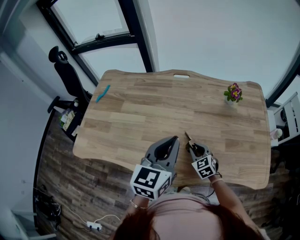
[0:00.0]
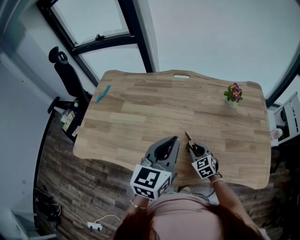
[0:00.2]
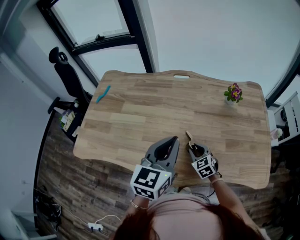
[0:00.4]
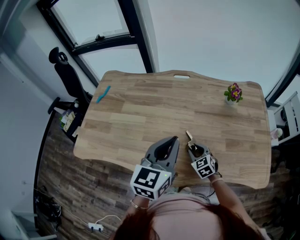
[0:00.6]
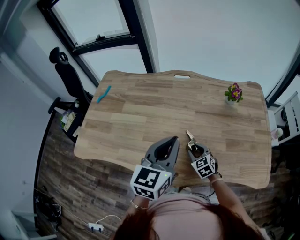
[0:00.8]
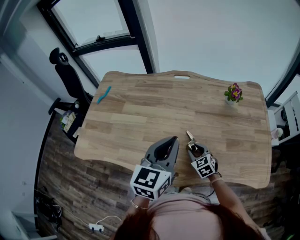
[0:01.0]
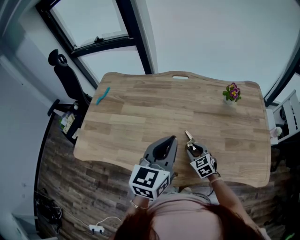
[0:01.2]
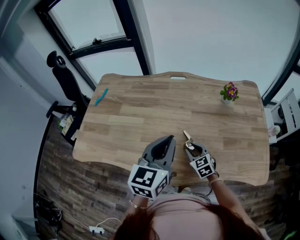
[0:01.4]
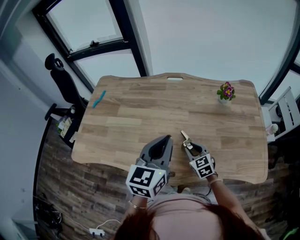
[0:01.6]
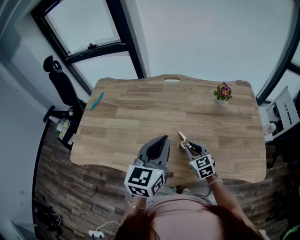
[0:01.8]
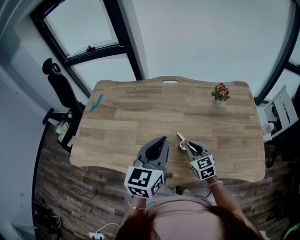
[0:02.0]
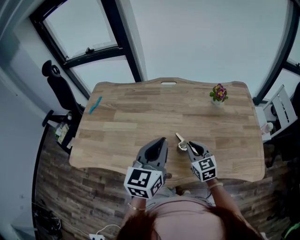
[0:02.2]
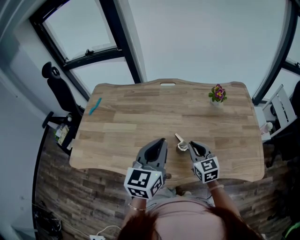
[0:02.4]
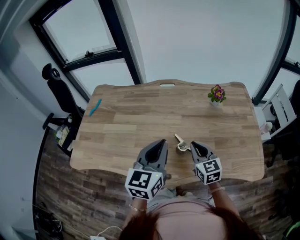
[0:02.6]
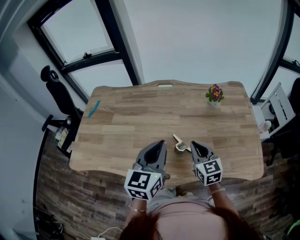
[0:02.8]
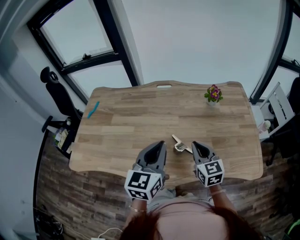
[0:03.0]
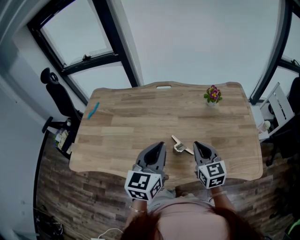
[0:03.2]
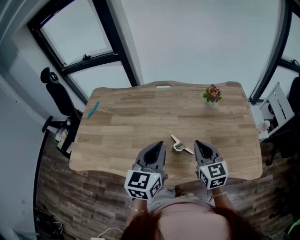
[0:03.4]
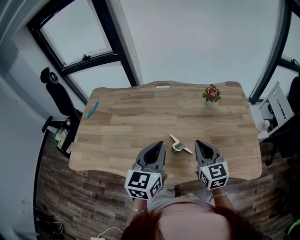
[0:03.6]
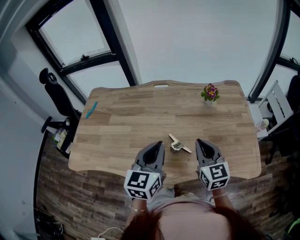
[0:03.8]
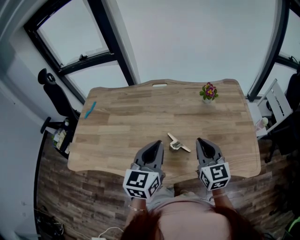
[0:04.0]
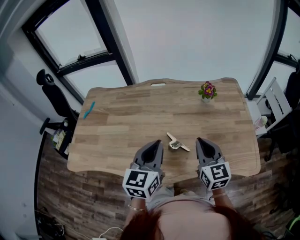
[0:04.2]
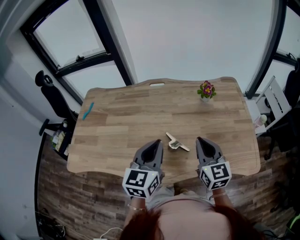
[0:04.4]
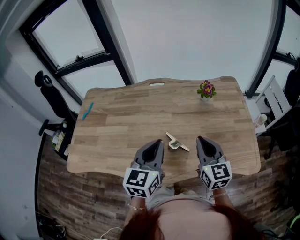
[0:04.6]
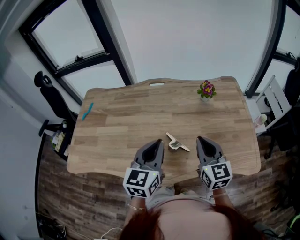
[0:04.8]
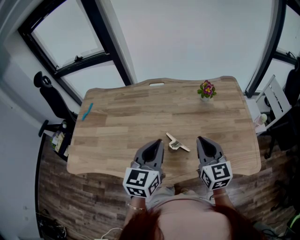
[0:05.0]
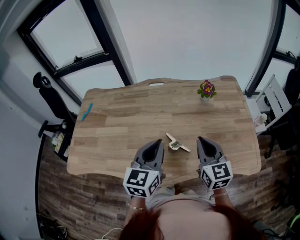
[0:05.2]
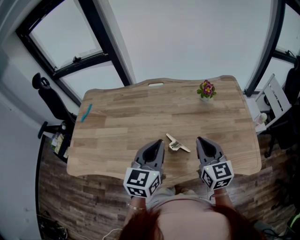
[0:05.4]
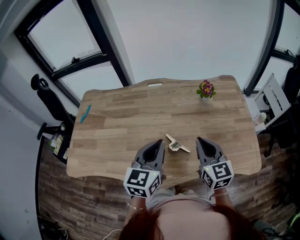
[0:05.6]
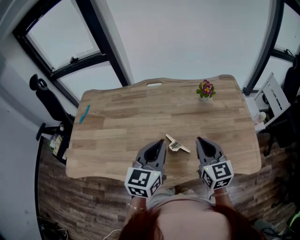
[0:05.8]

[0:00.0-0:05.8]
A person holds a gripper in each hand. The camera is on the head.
0:00.0 to 0:01.4: The grippers make only small movements.
0:01.4 to 0:02.8: The right gripper heads upward, covering approximately 15 cm, turns by roughly 20 degrees, and closes its fingers.
0:02.8 to 0:04.4: The right gripper shifts about 10 cm upward and to the right.
0:04.4 to 0:05.8: The grippers stay close to where they were, moving slightly.

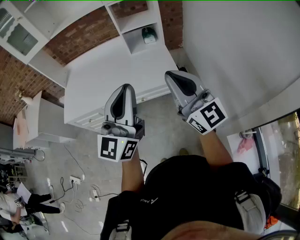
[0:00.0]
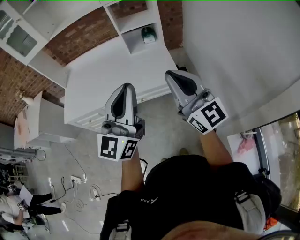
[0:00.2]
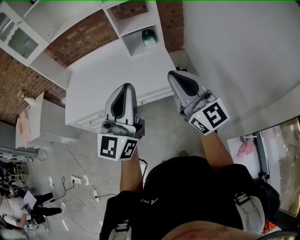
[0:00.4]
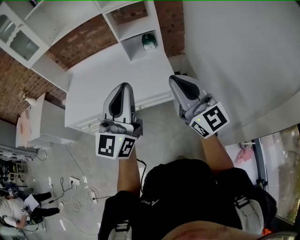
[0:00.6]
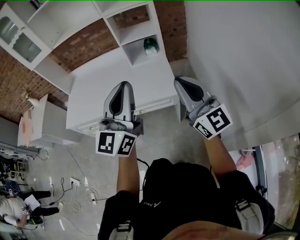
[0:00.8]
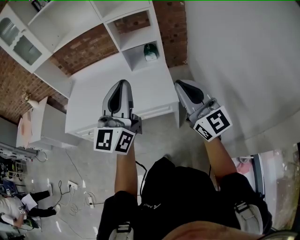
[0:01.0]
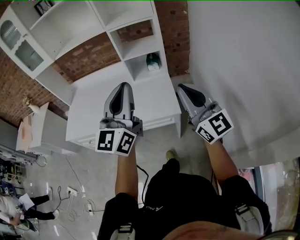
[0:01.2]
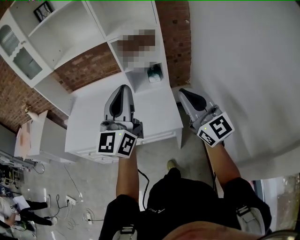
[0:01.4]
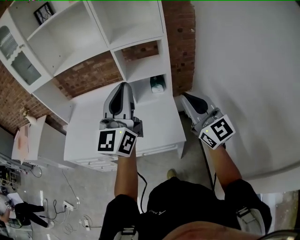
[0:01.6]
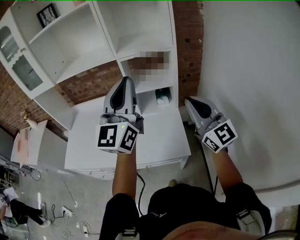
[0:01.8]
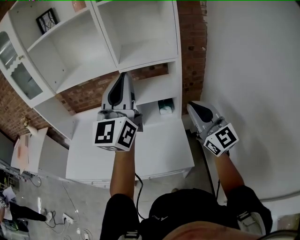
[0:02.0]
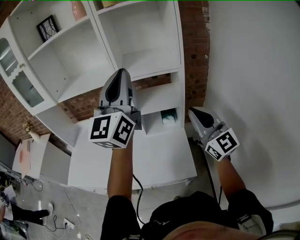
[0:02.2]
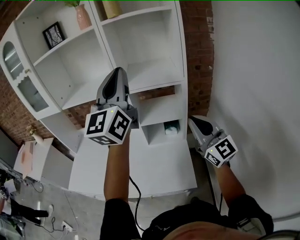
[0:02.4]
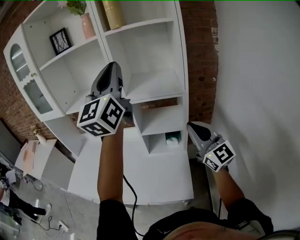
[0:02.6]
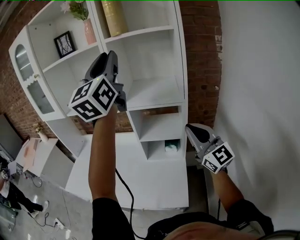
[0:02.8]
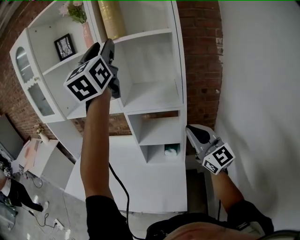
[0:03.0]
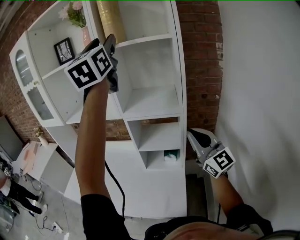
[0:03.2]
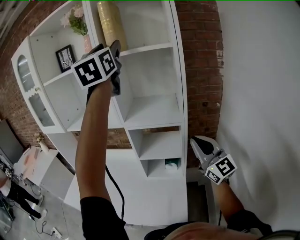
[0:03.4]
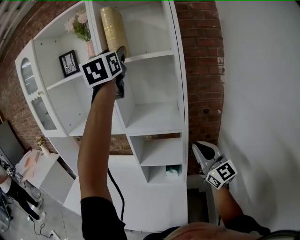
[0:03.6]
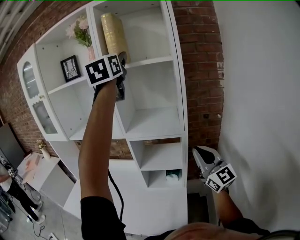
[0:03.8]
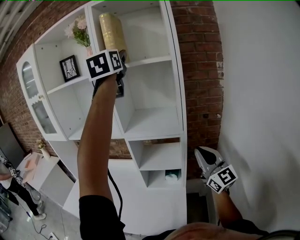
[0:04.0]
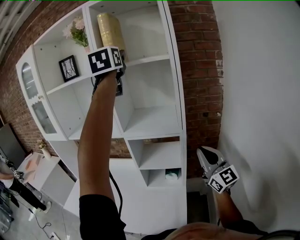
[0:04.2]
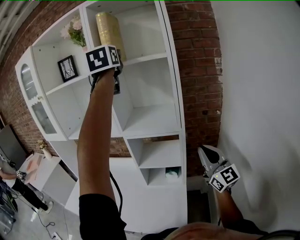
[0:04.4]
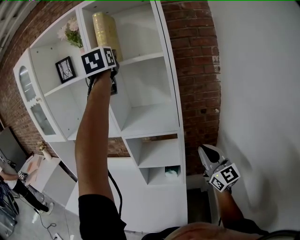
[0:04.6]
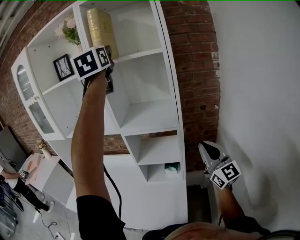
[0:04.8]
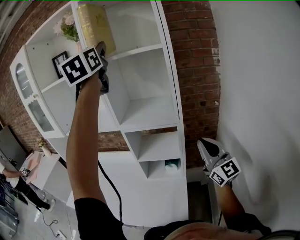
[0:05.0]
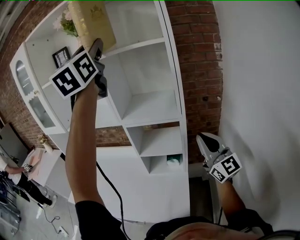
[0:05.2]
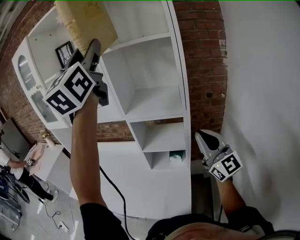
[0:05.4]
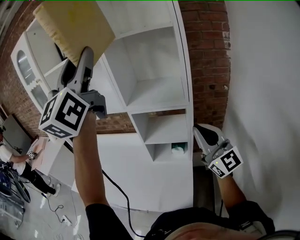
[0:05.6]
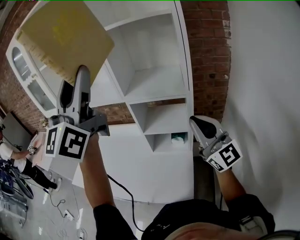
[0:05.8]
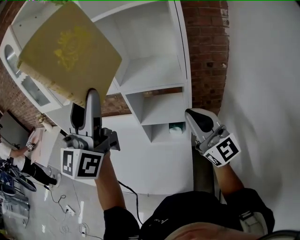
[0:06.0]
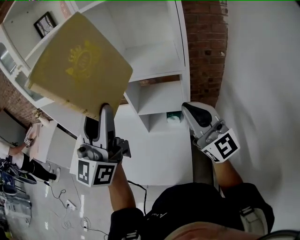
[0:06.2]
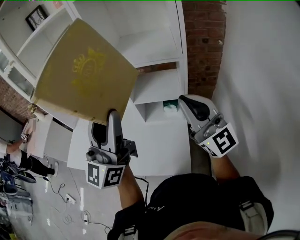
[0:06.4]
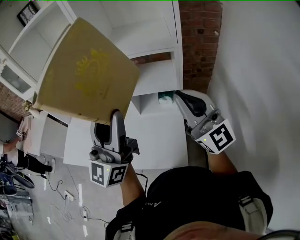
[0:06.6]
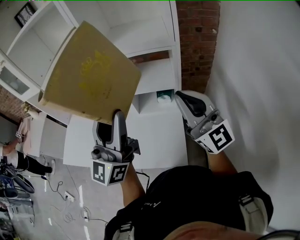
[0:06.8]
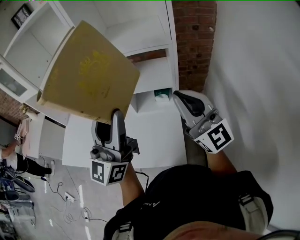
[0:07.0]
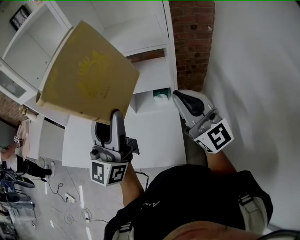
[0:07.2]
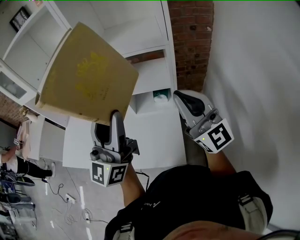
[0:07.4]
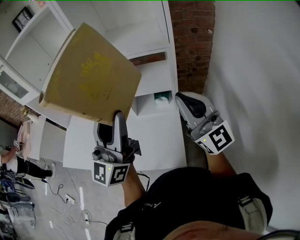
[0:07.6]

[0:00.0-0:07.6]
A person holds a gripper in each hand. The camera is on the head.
0:00.0 to 0:01.6: The left gripper goes some 25 cm forward, while the right gripper goes roughly 25 cm forward and to the right.
0:01.6 to 0:03.0: The right gripper is displaced forward by some 20 cm. Meanwhile the left gripper moves upward and forward, some 40 cm, rotates about 20 degrees, and opens up.
0:03.0 to 0:04.6: The right gripper heads to the right, covering approximately 10 cm. Meanwhile the left gripper heads forward, covering approximately 10 cm.
0:04.6 to 0:06.0: The left gripper is displaced backward and downward by some 30 cm, and swivels about 30 degrees. Meanwhile the right gripper goes about 10 cm to the left.
0:06.0 to 0:07.6: The right gripper ends up some 5 cm from where it was, while the left gripper is displaced downward by about 15 cm.

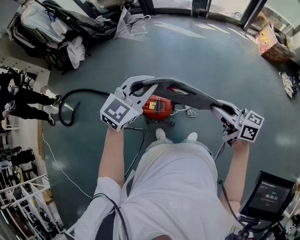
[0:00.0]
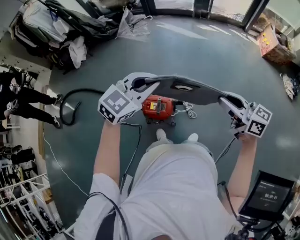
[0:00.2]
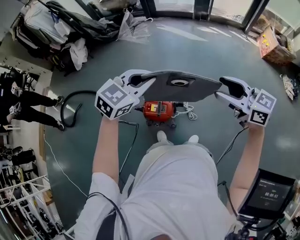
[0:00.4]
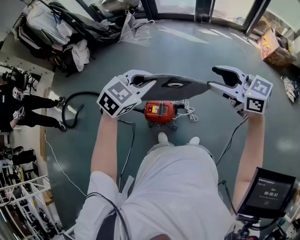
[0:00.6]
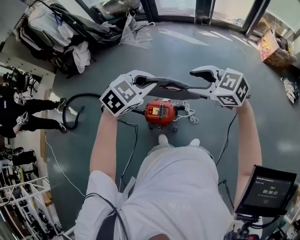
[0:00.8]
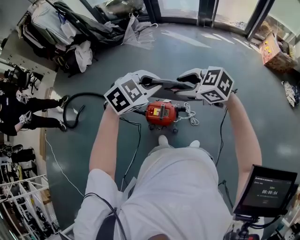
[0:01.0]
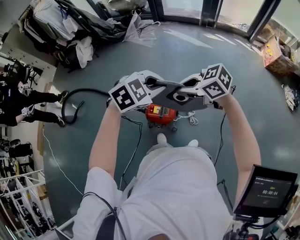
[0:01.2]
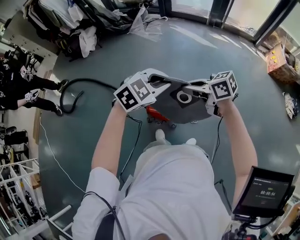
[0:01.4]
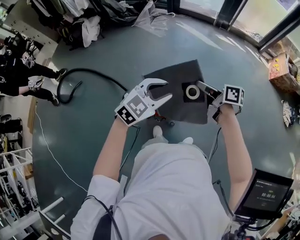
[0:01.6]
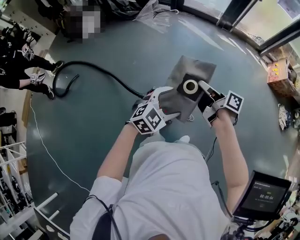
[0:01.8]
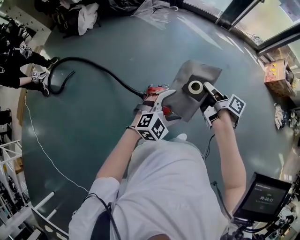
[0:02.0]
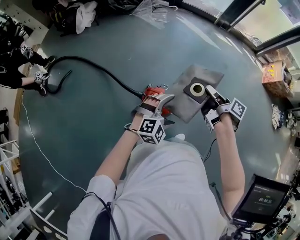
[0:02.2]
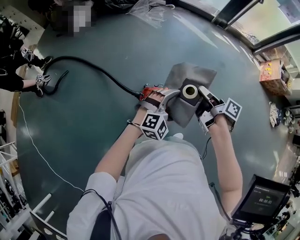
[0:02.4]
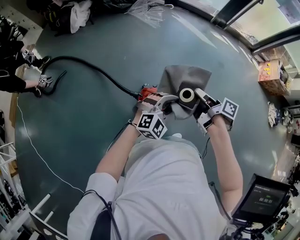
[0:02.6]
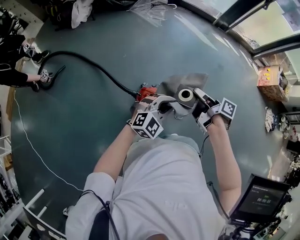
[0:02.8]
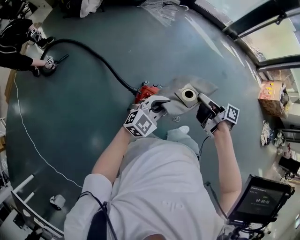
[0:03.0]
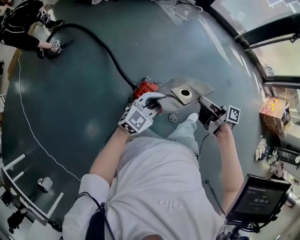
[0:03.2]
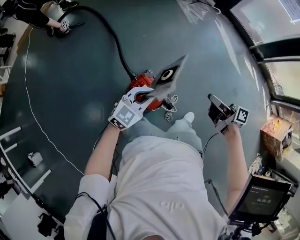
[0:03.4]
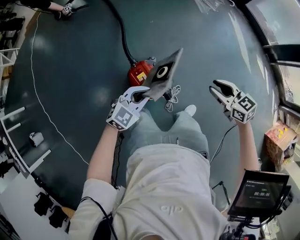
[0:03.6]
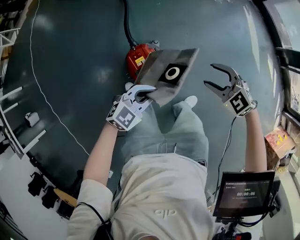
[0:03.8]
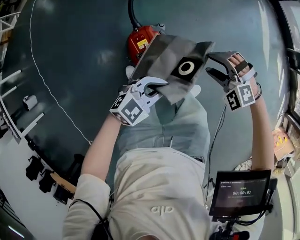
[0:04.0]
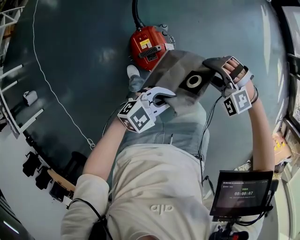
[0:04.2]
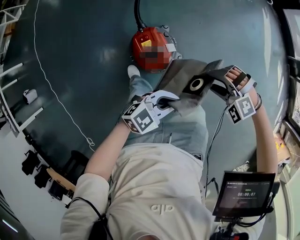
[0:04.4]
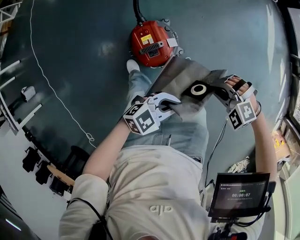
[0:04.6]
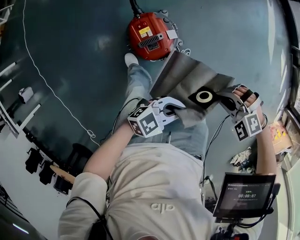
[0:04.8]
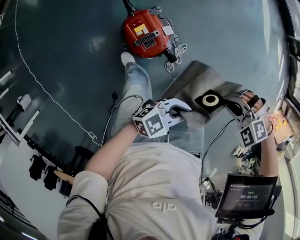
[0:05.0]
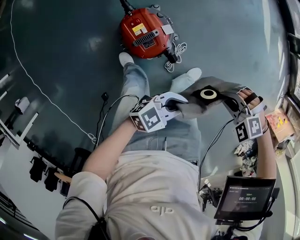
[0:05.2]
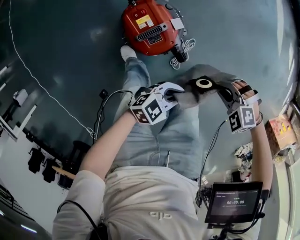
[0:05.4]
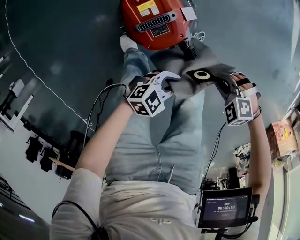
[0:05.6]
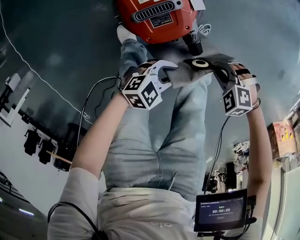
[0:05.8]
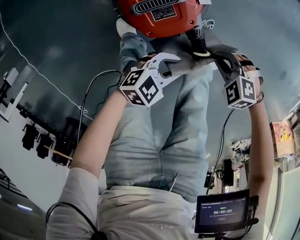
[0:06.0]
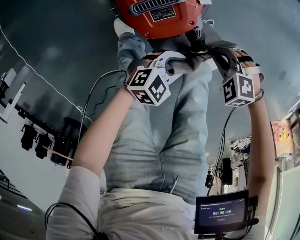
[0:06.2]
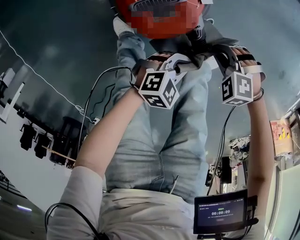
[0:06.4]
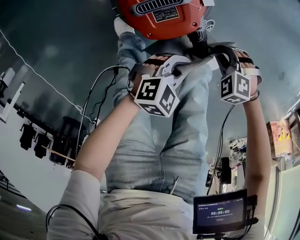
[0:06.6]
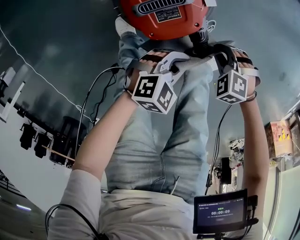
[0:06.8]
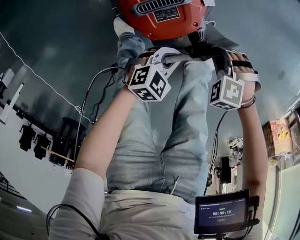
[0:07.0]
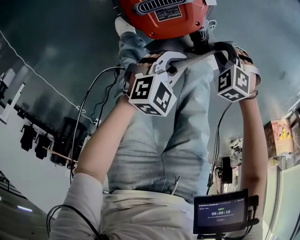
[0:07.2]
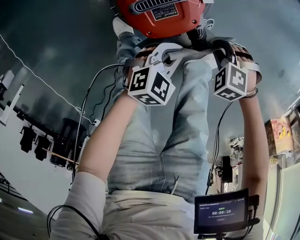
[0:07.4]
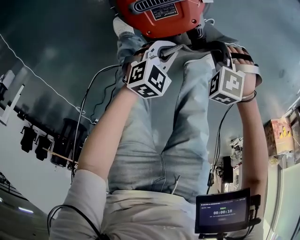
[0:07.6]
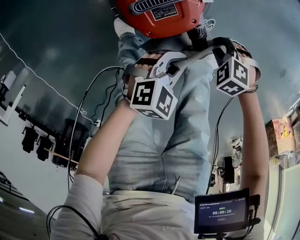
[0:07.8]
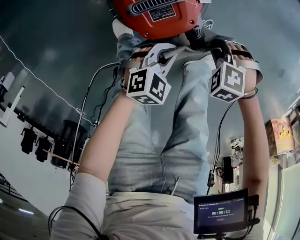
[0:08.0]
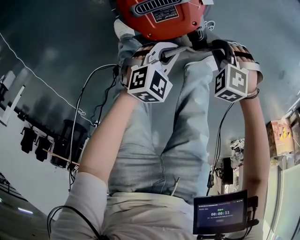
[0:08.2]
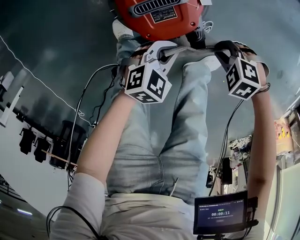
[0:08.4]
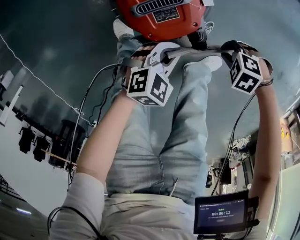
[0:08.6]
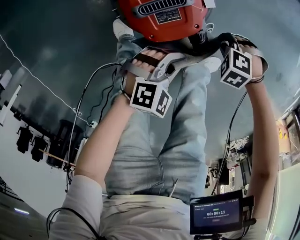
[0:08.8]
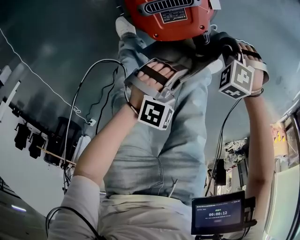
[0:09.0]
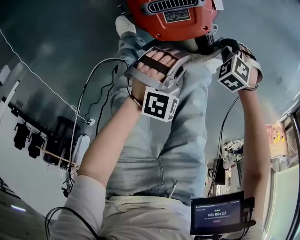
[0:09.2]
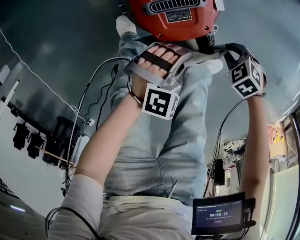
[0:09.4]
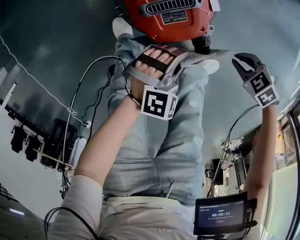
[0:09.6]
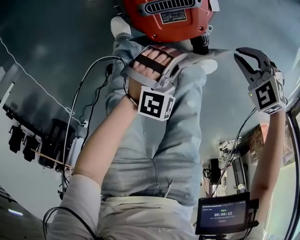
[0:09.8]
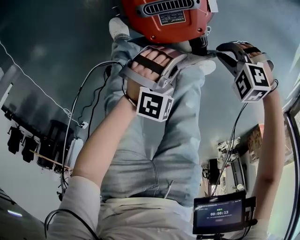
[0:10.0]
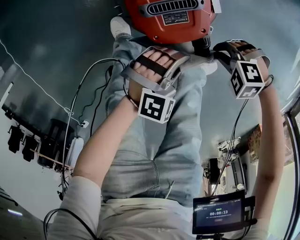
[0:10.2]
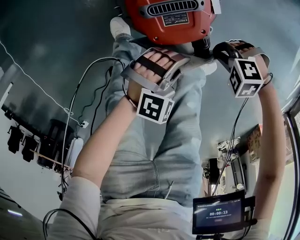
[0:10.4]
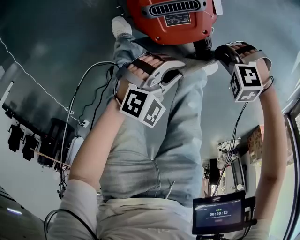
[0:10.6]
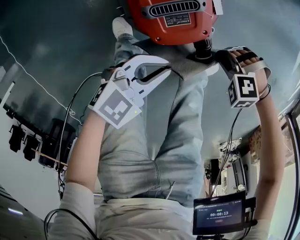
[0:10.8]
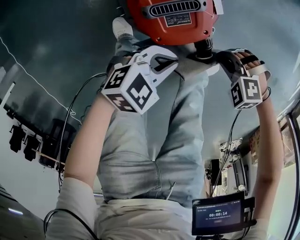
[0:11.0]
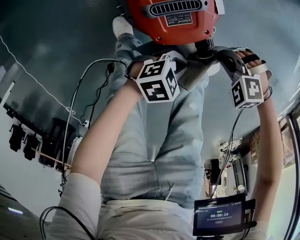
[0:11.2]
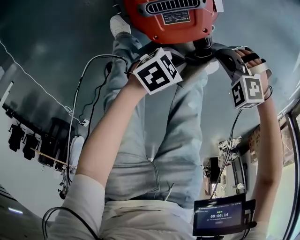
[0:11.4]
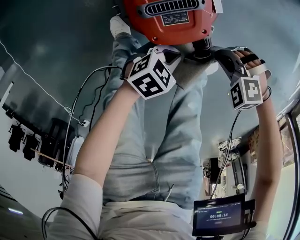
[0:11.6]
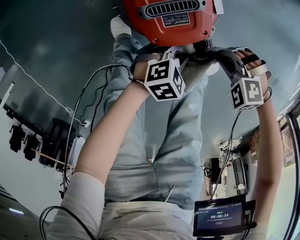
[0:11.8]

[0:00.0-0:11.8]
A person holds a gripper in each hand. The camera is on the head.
0:00.0 to 0:01.4: The left gripper changes its angle by some 20 degrees. The right gripper reaches about 10 cm upward, then returns, swivels some 30 degrees, and opens, then closes again.
0:01.4 to 0:03.0: Both grippers travel together downward, roughly 15 cm. The left gripper turns by some 30 degrees, and opens and closes again. The right gripper rolls clockwise, seen from behind, by about 50 degrees.
0:03.0 to 0:04.4: The left gripper ends up about 30 cm from where it was, and turns by approximately 40 degrees, while the right gripper moves downward, approximately 25 cm, rolls counterclockwise, seen from behind, by about 140 degrees, and opens its fingers.
0:04.4 to 0:06.0: The two grippers go about 35 cm downward. The right gripper rotates roughly 30 degrees, and closes.
0:06.0 to 0:07.4: The left gripper shifts by approximately 5 cm.
0:07.4 to 0:08.8: The right gripper moves roughly 5 cm.
0:08.8 to 0:10.4: The right gripper swivels approximately 20 degrees.
0:10.4 to 0:11.8: The left gripper heads downward, covering roughly 5 cm, and turns by roughly 40 degrees.
